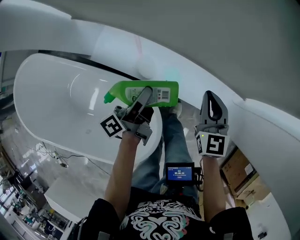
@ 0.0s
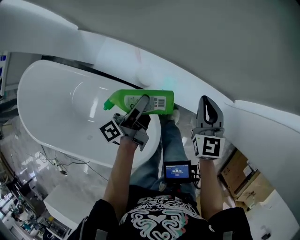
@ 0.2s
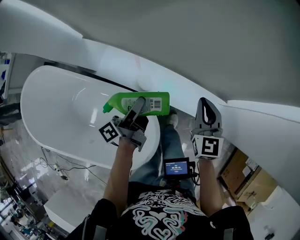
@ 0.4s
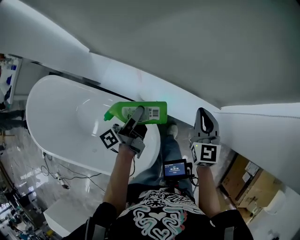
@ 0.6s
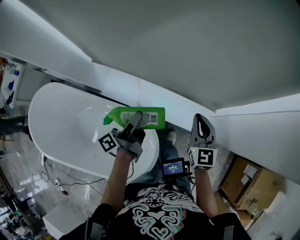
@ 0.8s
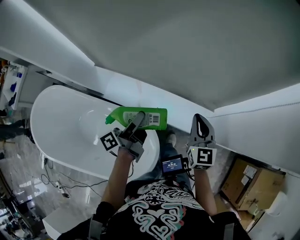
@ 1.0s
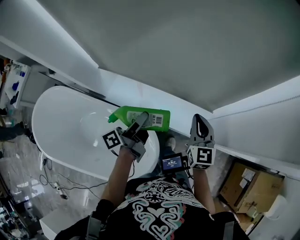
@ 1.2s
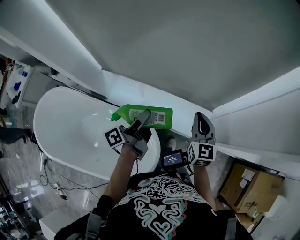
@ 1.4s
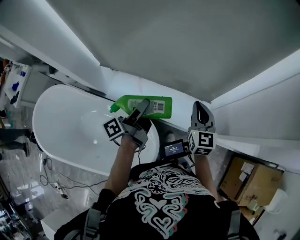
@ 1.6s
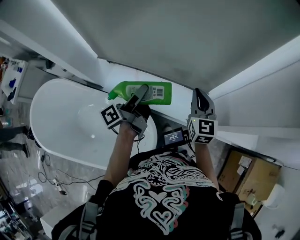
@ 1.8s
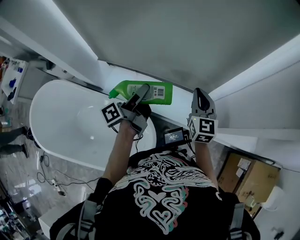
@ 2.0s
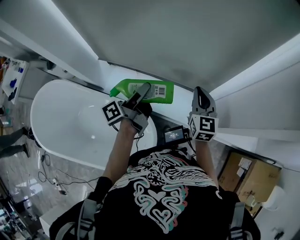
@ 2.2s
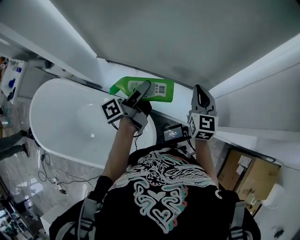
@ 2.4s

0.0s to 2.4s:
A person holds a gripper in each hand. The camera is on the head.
0.0s to 1.2s: Both grippers move upward, about 20 cm.
1.2s to 2.4s: The left gripper shifts about 5 cm upward; the right gripper changes place by about 5 cm.

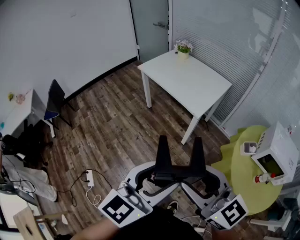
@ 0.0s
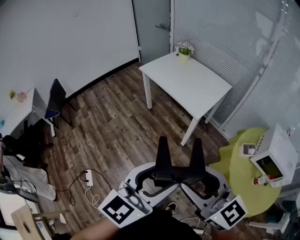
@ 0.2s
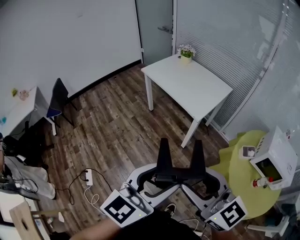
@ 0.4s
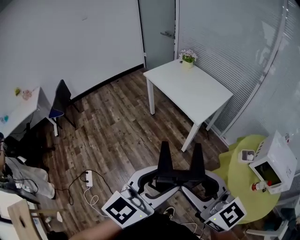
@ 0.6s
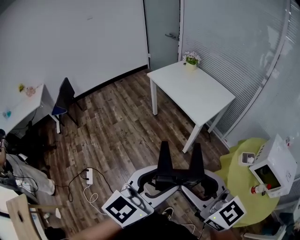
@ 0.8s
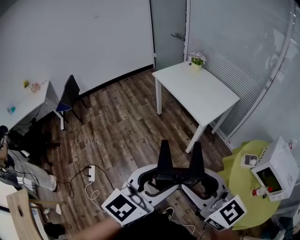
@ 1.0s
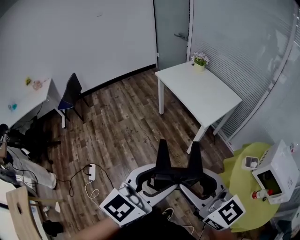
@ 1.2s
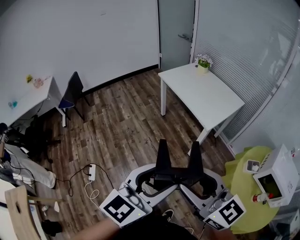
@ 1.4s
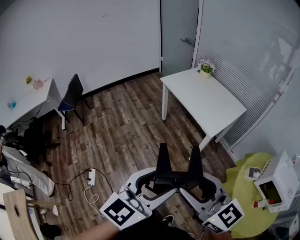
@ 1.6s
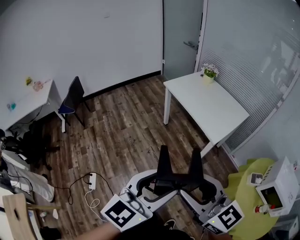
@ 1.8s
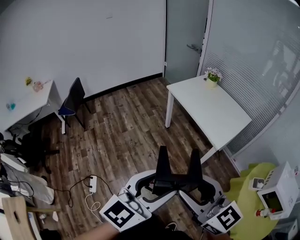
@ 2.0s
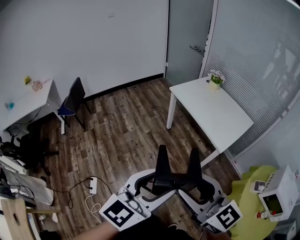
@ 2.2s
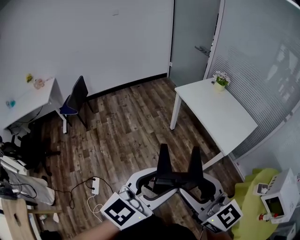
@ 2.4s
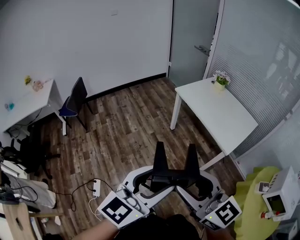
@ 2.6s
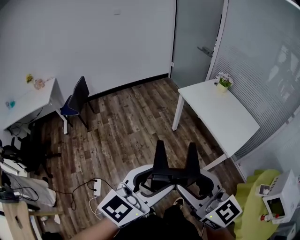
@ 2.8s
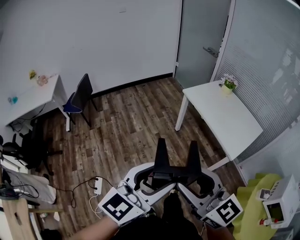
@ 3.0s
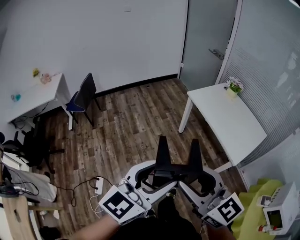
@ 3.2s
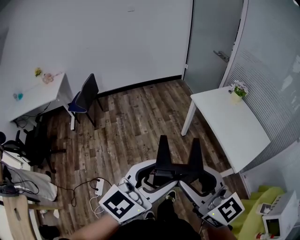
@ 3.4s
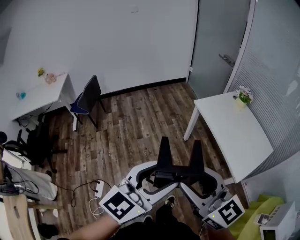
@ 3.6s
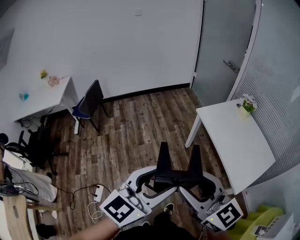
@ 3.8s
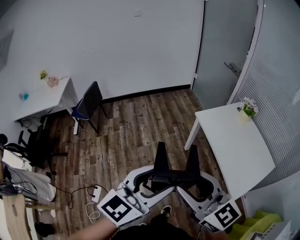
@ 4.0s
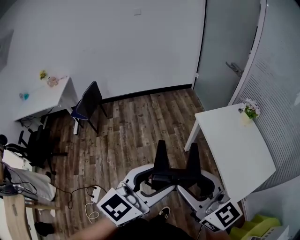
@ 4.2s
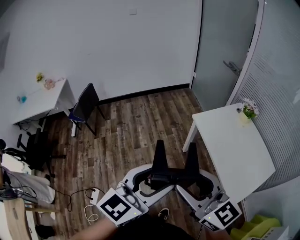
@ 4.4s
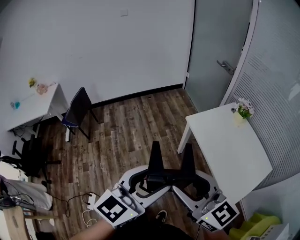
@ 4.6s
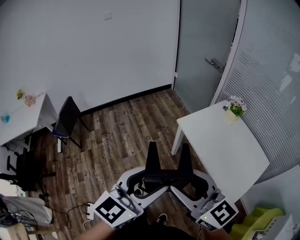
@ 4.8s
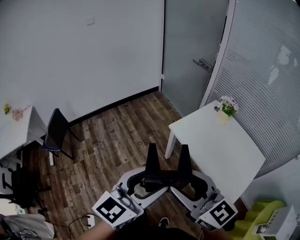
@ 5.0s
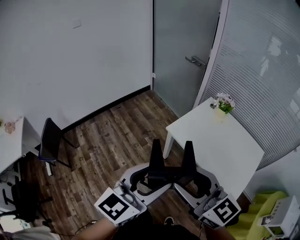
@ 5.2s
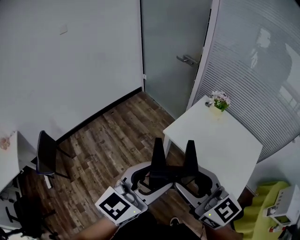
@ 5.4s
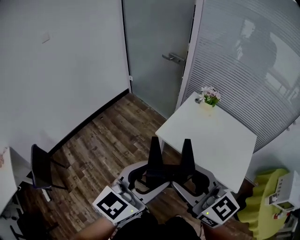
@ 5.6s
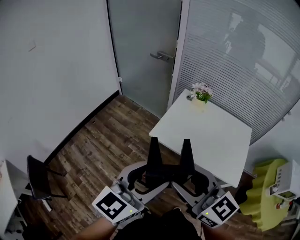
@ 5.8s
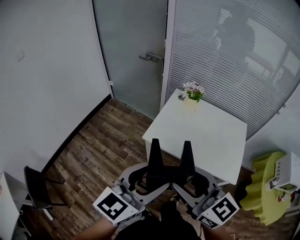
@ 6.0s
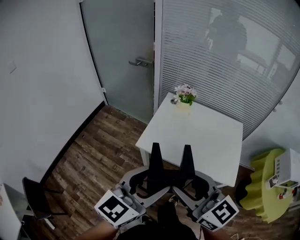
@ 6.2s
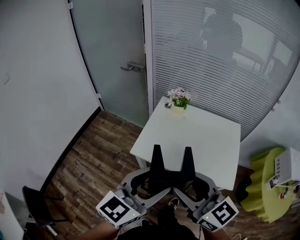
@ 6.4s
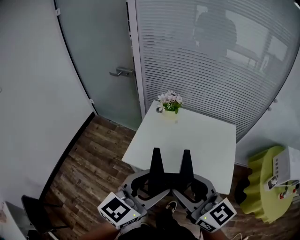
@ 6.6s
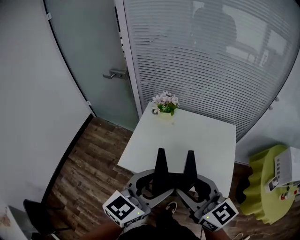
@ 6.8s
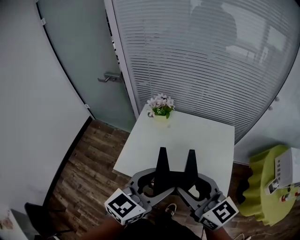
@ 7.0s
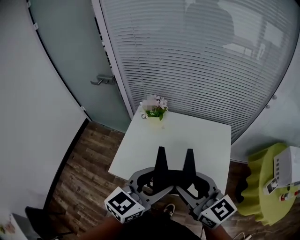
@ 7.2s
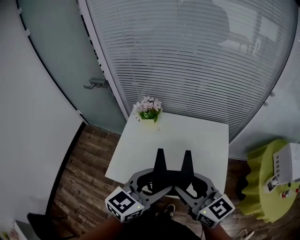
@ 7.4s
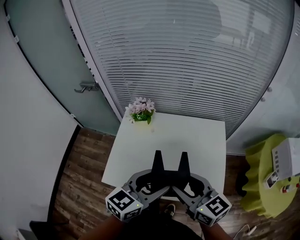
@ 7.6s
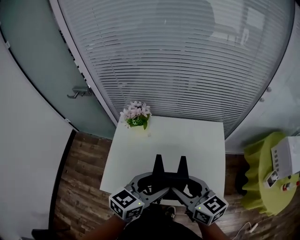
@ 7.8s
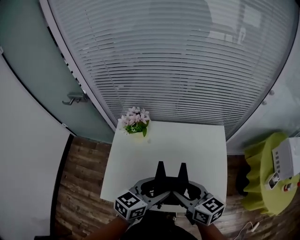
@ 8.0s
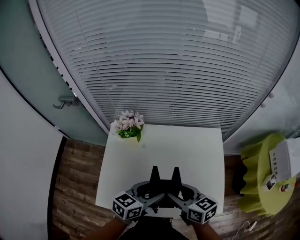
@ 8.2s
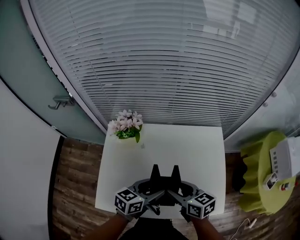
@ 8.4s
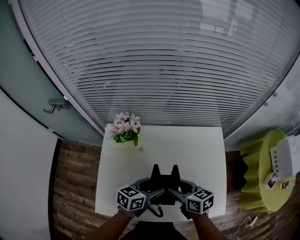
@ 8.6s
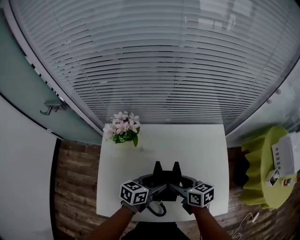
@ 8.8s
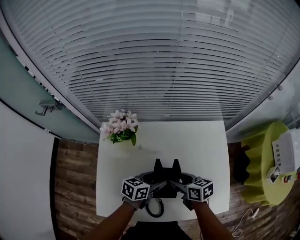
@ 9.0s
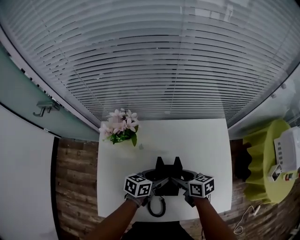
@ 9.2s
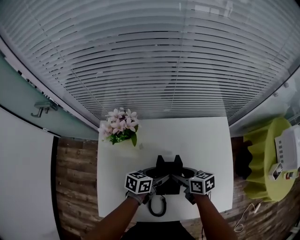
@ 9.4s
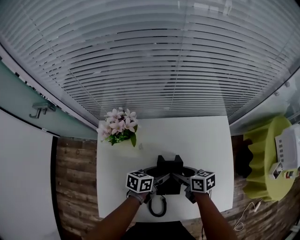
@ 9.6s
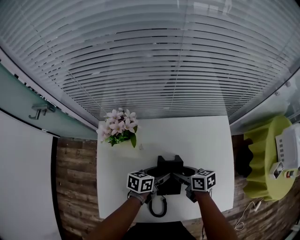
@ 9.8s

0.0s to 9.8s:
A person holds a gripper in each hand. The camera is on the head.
0.0s to 1.4s: The grippers make only small movements.
1.4s to 2.8s: The two grippers go roughly 25 cm to the left and forward.
2.8s to 4.2s: Both grippers travel together forward, some 25 cm.
4.2s to 5.6s: The right gripper shifts by about 25 cm, and rotates about 30 degrees; the left gripper ends up roughly 30 cm from where it was, and turns by some 30 degrees.
5.6s to 7.0s: The left gripper travels forward and to the right by about 35 cm, and rotates approximately 30 degrees; the right gripper goes approximately 30 cm to the right and forward, and rotates some 20 degrees.
7.0s to 8.4s: The grippers both shift downward and forward by about 30 cm. The left gripper changes its angle by approximately 30 degrees. Meanwhile the right gripper swivels some 40 degrees.
8.4s to 9.8s: Both grippers travel together downward and forward, roughly 20 cm. The left gripper changes its angle by some 20 degrees.

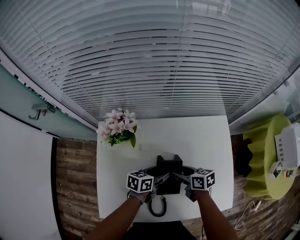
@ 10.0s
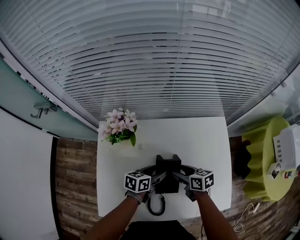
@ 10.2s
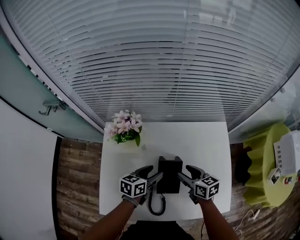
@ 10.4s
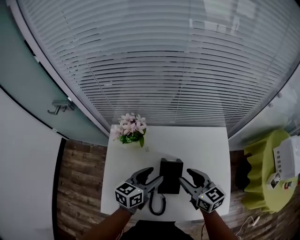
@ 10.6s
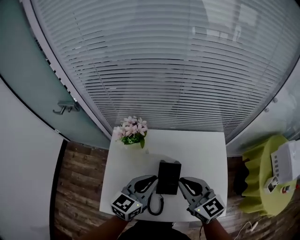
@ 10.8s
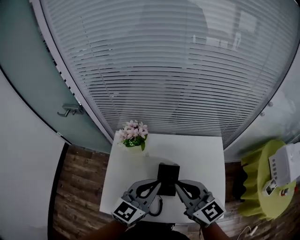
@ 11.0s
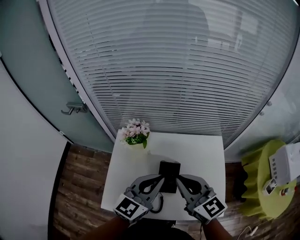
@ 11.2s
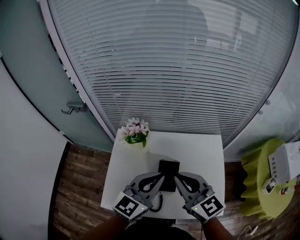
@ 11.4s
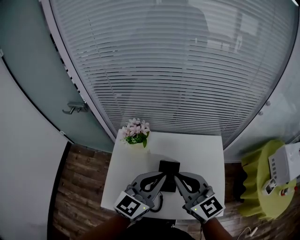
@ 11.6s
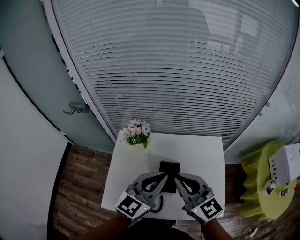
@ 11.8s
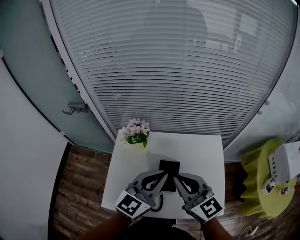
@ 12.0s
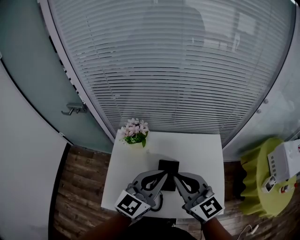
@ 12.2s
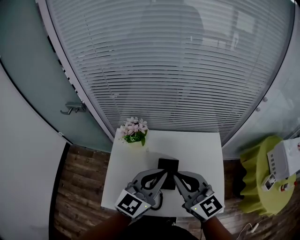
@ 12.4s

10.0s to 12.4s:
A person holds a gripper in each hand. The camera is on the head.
10.0s to 11.2s: Both grippers travel together upward, about 35 cm. The right gripper rotates around the line of its fingers by some 40 degrees, counterclockwise from behind, and closes; the left gripper turns by some 50 degrees, and closes.
11.2s to 12.4s: The grippers move only a little.

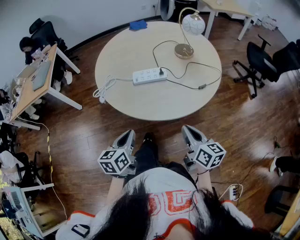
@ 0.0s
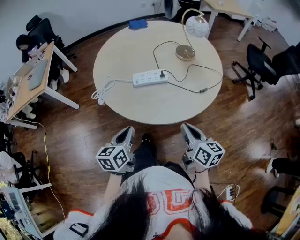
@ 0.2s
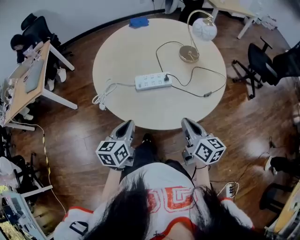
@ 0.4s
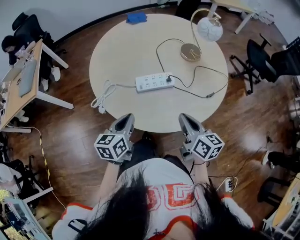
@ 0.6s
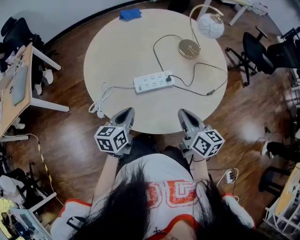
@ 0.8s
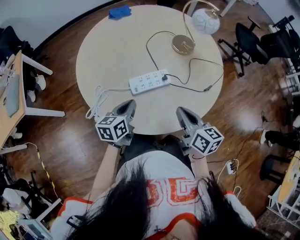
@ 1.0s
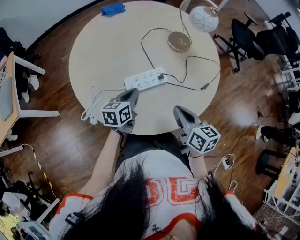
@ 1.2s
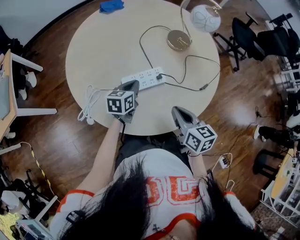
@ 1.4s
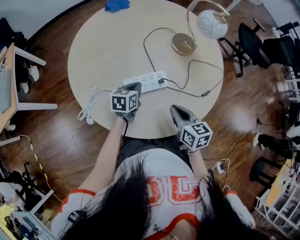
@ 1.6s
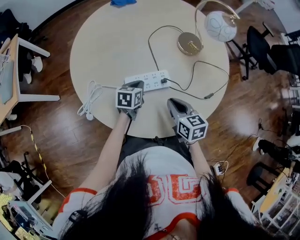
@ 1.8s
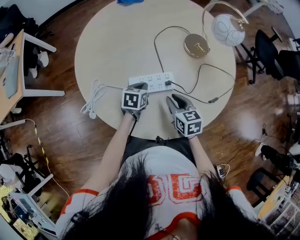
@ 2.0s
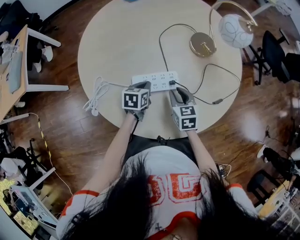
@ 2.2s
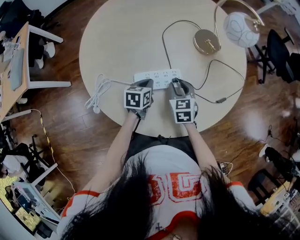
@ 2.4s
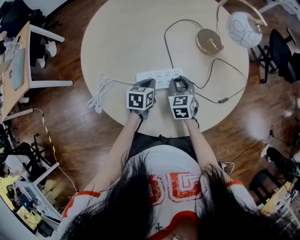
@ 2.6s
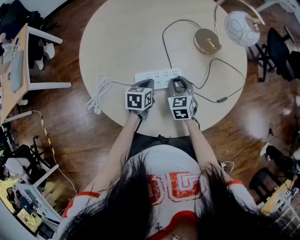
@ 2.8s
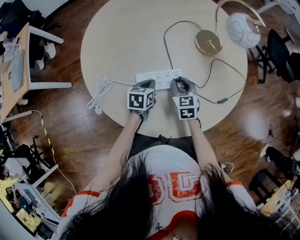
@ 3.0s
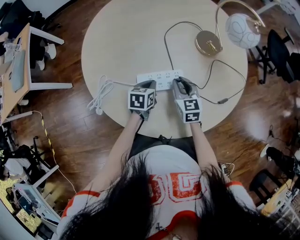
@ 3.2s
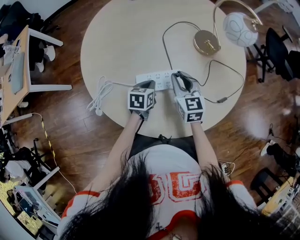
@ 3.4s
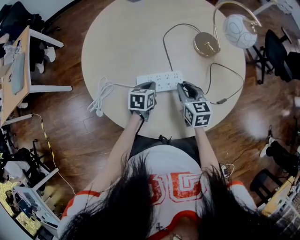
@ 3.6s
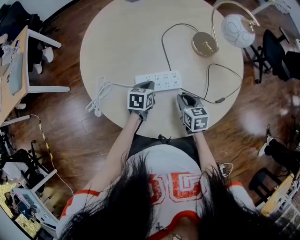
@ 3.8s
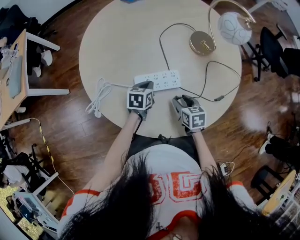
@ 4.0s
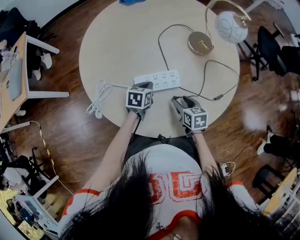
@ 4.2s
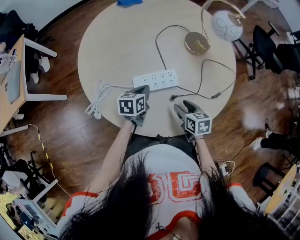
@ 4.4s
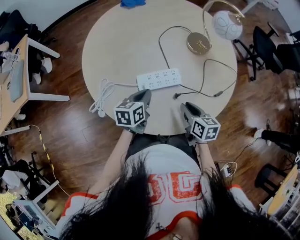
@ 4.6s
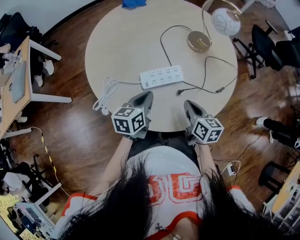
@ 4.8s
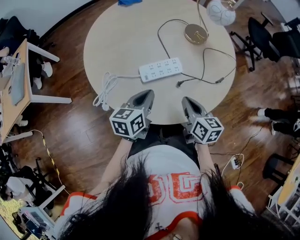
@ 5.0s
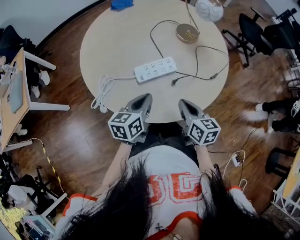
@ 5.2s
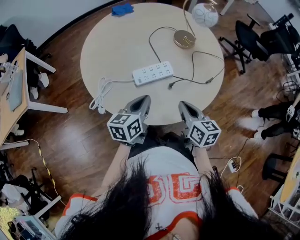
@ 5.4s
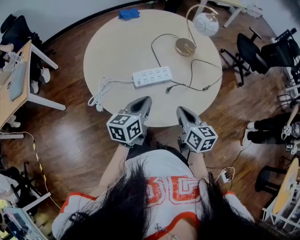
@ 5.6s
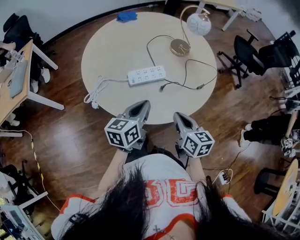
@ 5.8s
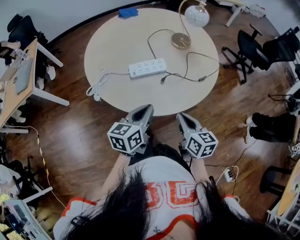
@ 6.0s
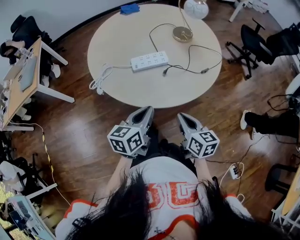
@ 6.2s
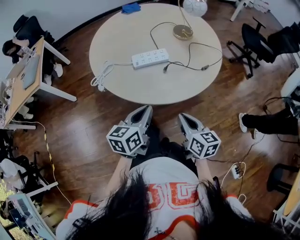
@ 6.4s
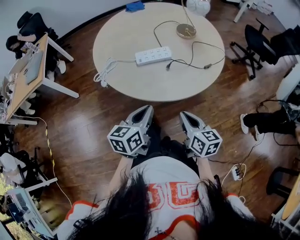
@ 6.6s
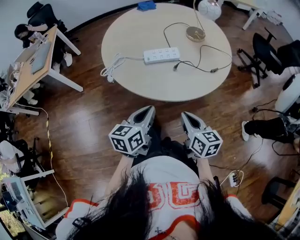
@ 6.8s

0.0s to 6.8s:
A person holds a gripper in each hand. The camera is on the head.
0.0s to 1.4s: The right gripper shifts roughly 15 cm forward and to the left, while the left gripper shifts about 30 cm forward, and rotates approximately 30 degrees.
1.4s to 2.8s: The right gripper heads forward and downward, covering roughly 20 cm, swivels roughly 40 degrees, and opens up, while the left gripper travels downward by about 5 cm.
2.8s to 4.0s: The right gripper travels backward by about 10 cm, travels upward and back again, about 10 cm each way, and swivels about 30 degrees.
4.0s to 5.4s: The two grippers go some 20 cm upward and backward. The left gripper swivels approximately 30 degrees. The right gripper swivels roughly 30 degrees, and closes up.
5.4s to 6.8s: Both grippers travel together backward, approximately 15 cm.

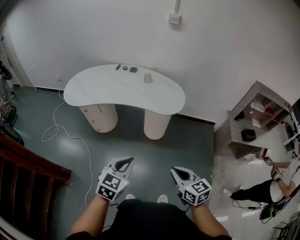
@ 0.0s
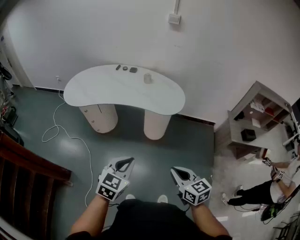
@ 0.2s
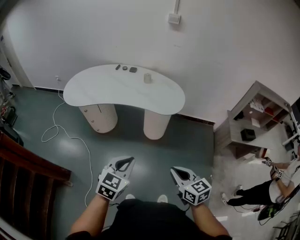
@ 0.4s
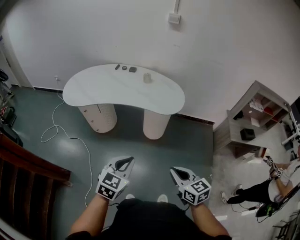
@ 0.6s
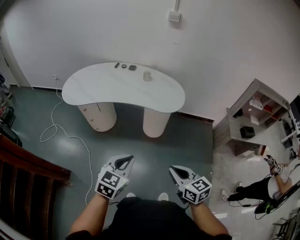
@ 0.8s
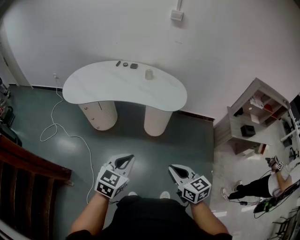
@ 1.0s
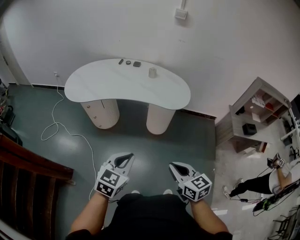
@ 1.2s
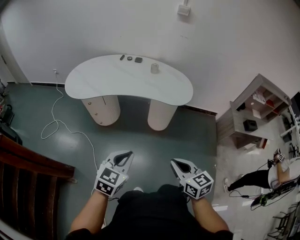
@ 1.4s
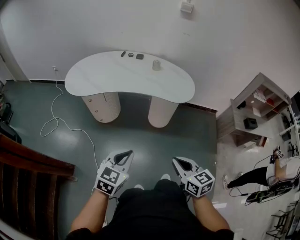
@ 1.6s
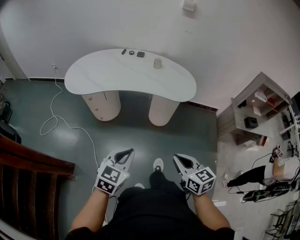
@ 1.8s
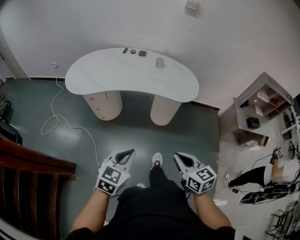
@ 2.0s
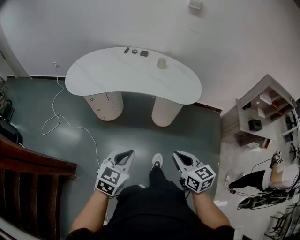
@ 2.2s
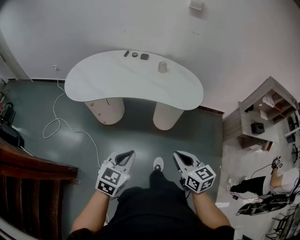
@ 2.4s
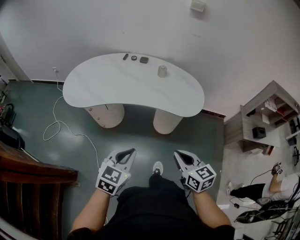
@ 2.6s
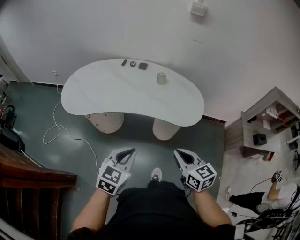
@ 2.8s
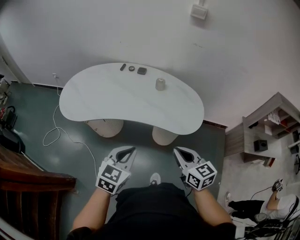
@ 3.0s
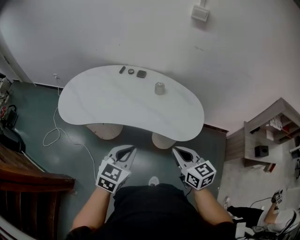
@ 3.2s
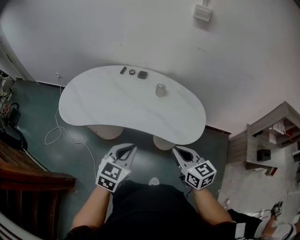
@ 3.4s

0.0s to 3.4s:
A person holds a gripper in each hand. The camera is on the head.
0.0s to 1.6s: The grippers both shift to the left by roughly 10 cm.
1.6s to 3.4s: The grippers both shift forward by approximately 35 cm.
